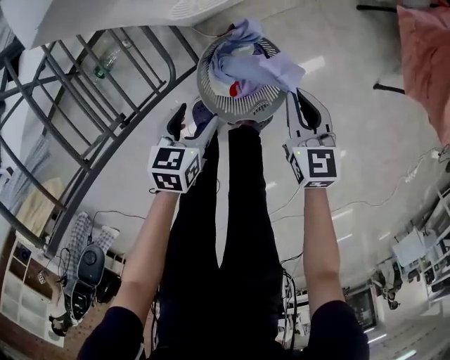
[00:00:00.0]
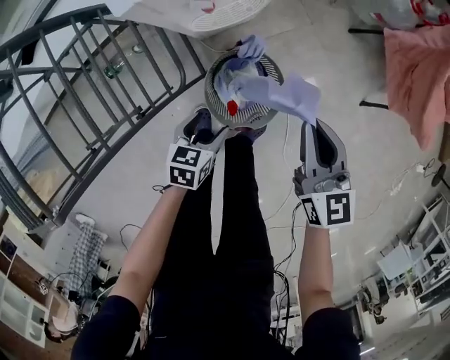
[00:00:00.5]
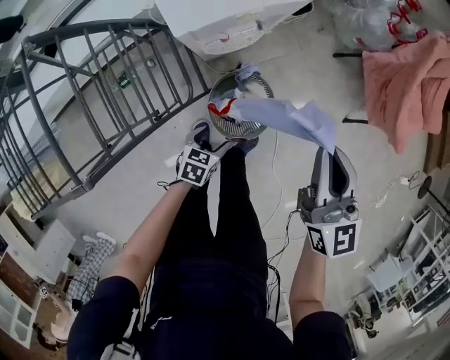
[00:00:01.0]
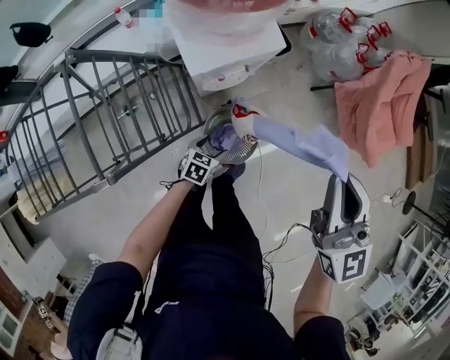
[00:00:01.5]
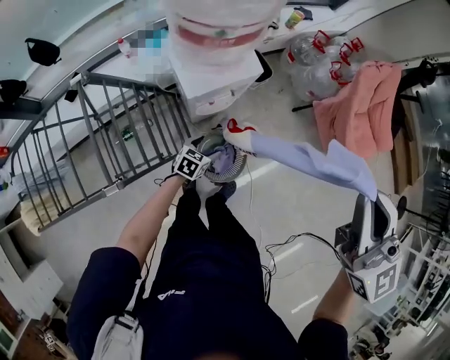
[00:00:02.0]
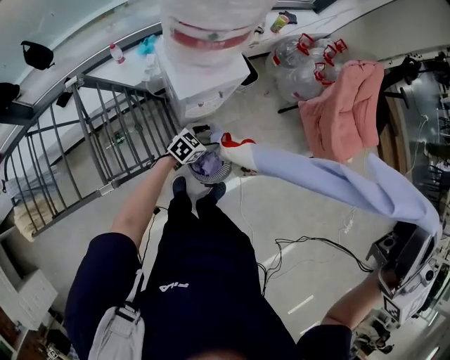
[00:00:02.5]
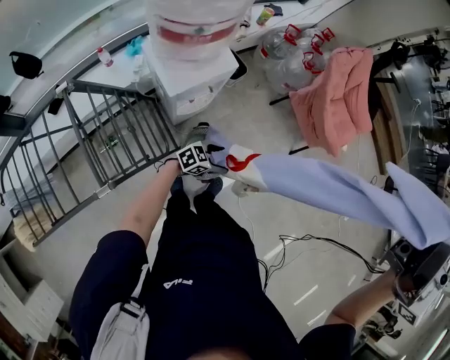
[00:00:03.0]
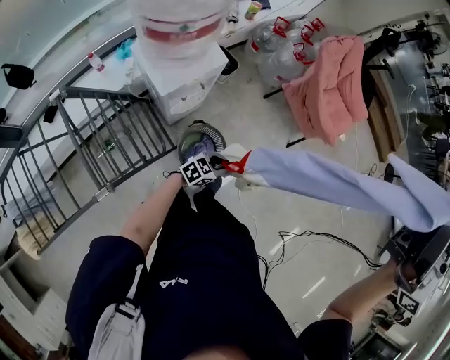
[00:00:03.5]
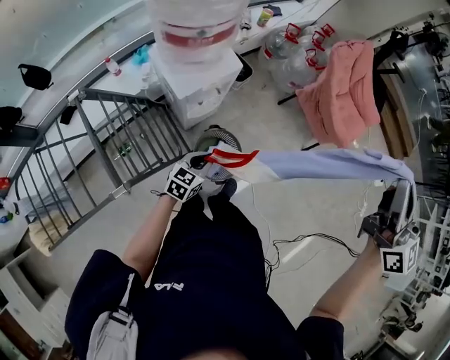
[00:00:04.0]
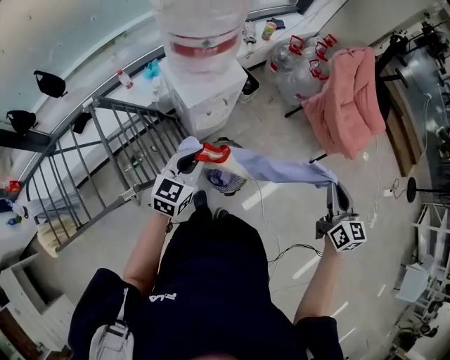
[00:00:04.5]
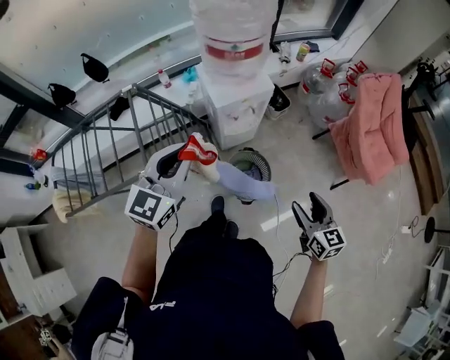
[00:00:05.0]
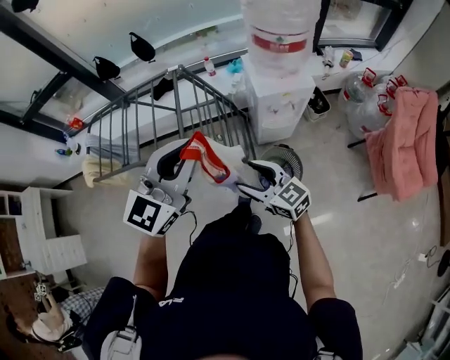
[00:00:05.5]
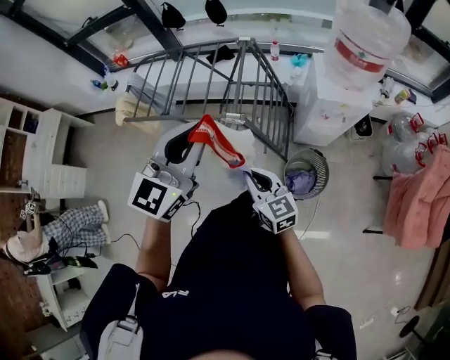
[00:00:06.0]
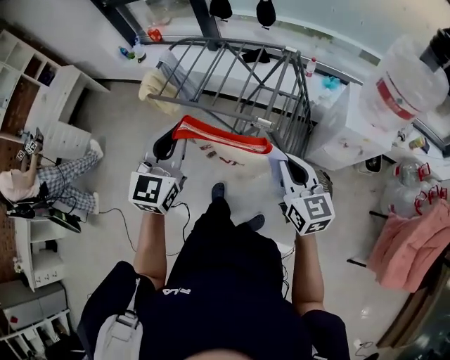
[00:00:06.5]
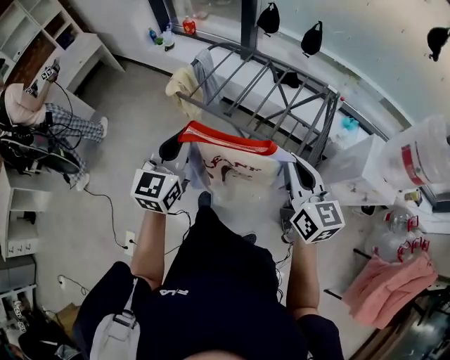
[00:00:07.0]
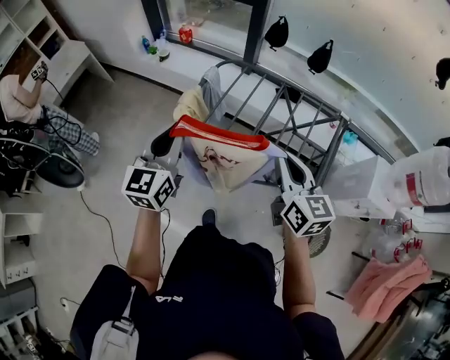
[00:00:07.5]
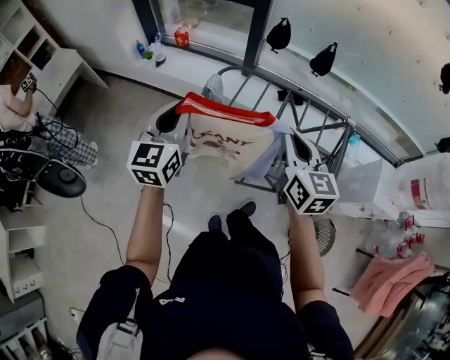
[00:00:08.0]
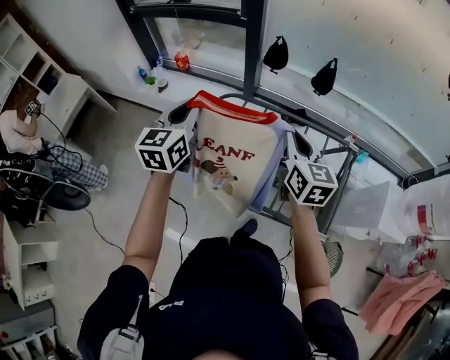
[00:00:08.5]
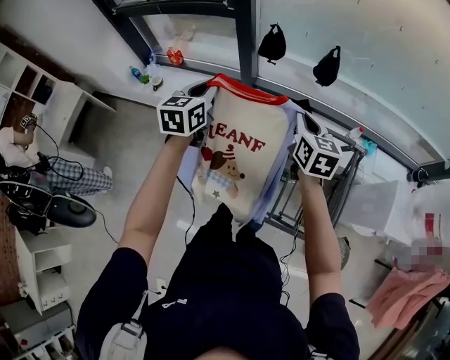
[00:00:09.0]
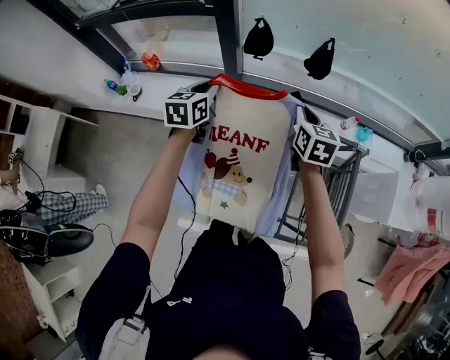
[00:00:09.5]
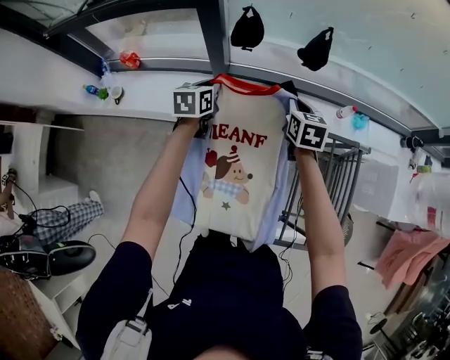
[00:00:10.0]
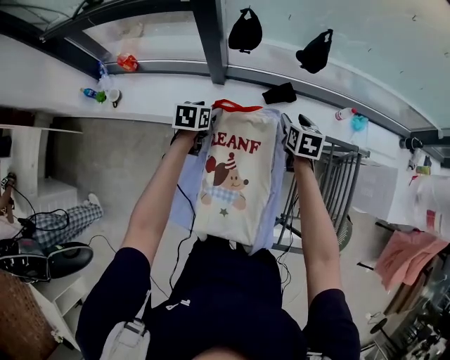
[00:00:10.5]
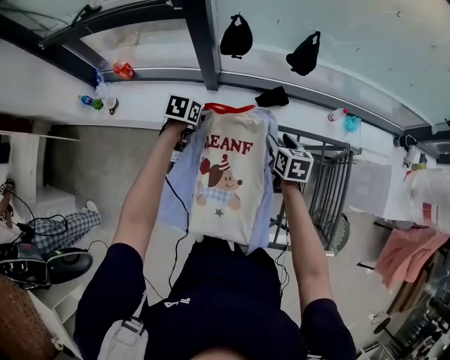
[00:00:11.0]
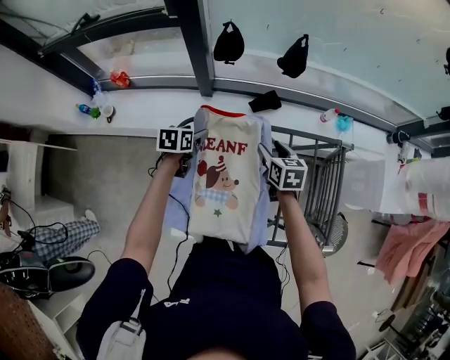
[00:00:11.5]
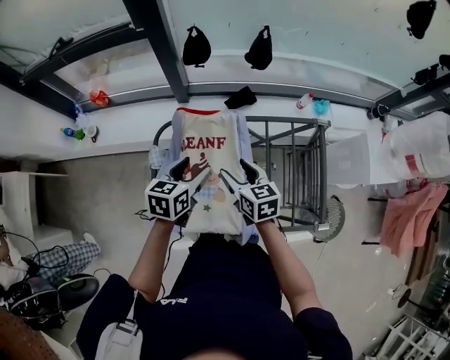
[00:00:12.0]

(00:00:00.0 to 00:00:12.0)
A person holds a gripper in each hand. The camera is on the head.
00:00:00.0 - 00:00:02.0: The right gripper goes roughly 70 cm upward, and points its fingers approximately 30 degrees further upward. Meanwhile the left gripper heads upward, covering some 25 cm, and changes its angle by roughly 20 degrees.
00:00:02.0 - 00:00:04.0: The left gripper goes some 15 cm upward, and closes its fingers. Meanwhile the right gripper goes upward and returns, roughly 20 cm each way, and swivels about 20 degrees.
00:00:04.0 - 00:00:06.0: The left gripper travels upward by approximately 35 cm, and changes its angle by approximately 60 degrees; the right gripper changes place by about 60 cm, rotates approximately 70 degrees, and opens and closes again.
00:00:06.0 - 00:00:08.0: Both grippers are carried to the left and forward, roughly 60 cm. The left gripper changes its angle by roughly 30 degrees. Meanwhile the right gripper moves upward, about 15 cm.
00:00:08.0 - 00:00:10.0: The two grippers travel together, forward, roughly 50 cm. The grippers both shift downward by some 25 cm. The right gripper rotates some 30 degrees. The left gripper swivels about 40 degrees.
00:00:10.0 - 00:00:12.0: The left gripper heads backward and to the right, covering approximately 25 cm, and opens up; the right gripper goes approximately 25 cm backward, and opens up.

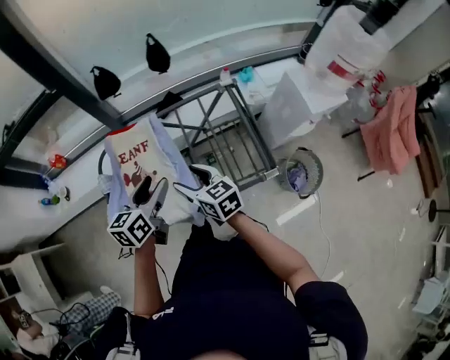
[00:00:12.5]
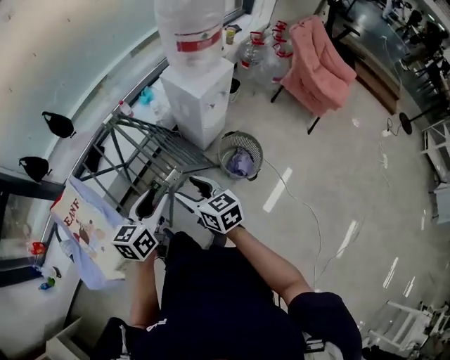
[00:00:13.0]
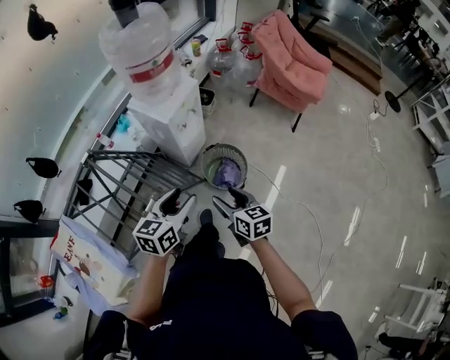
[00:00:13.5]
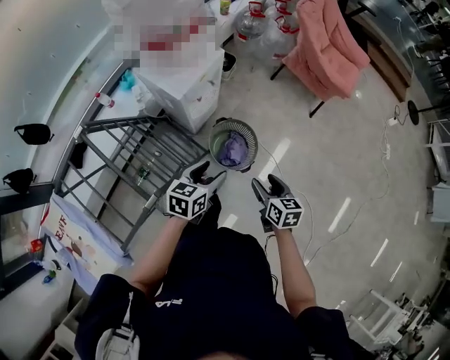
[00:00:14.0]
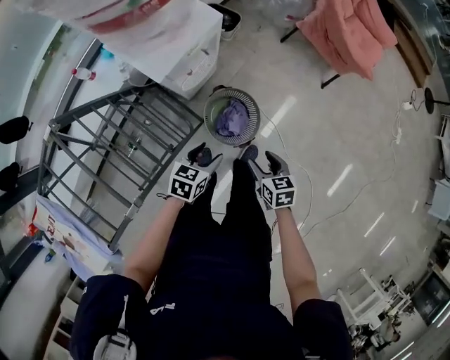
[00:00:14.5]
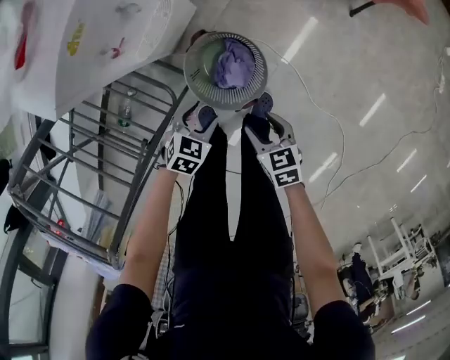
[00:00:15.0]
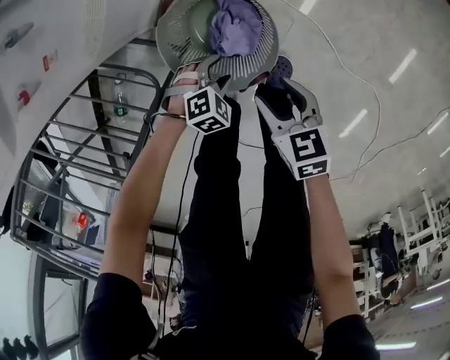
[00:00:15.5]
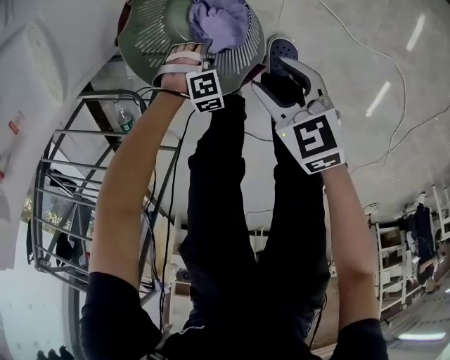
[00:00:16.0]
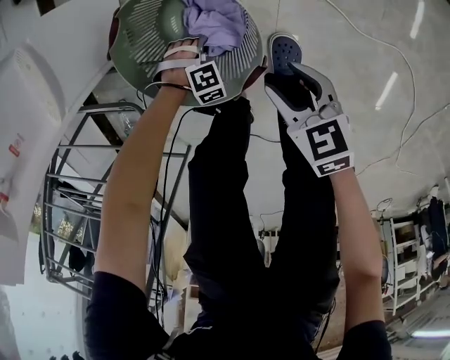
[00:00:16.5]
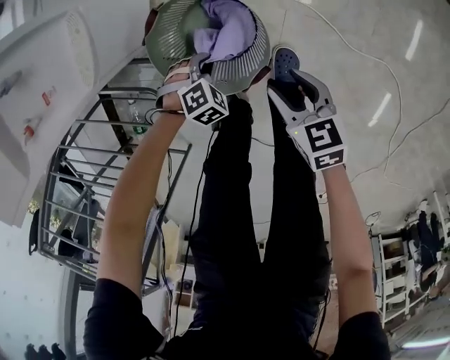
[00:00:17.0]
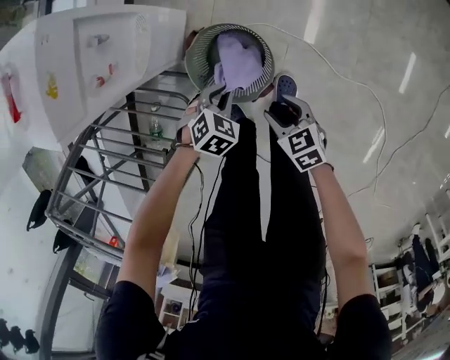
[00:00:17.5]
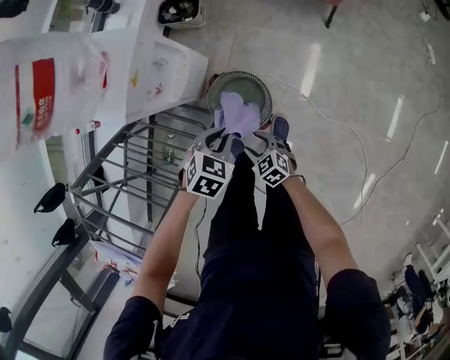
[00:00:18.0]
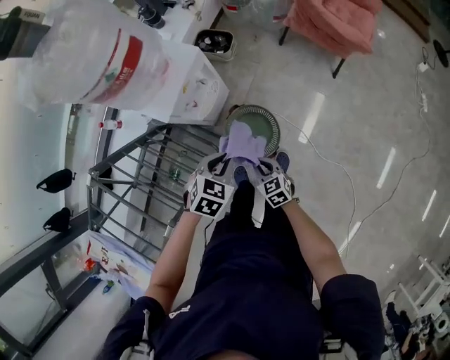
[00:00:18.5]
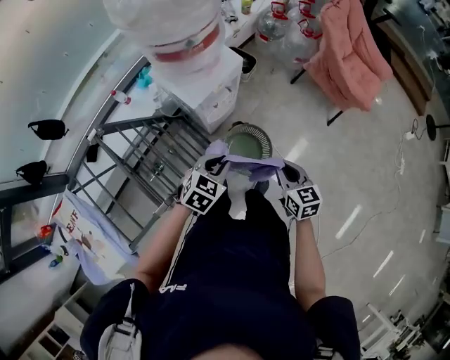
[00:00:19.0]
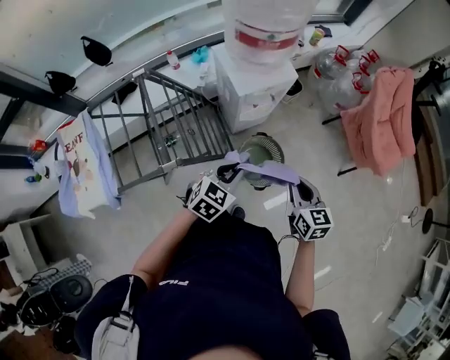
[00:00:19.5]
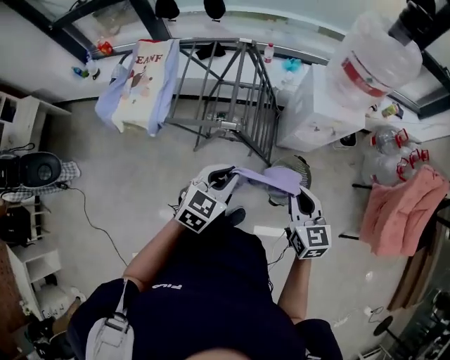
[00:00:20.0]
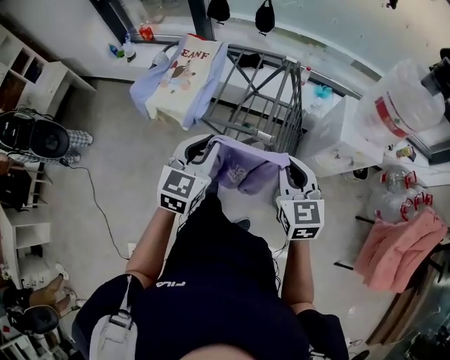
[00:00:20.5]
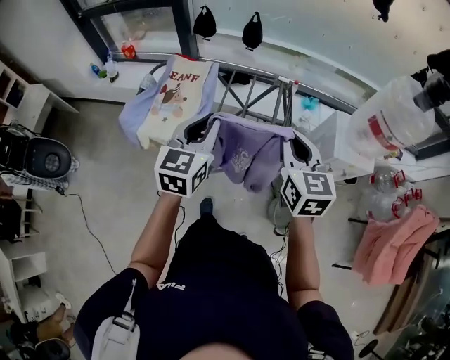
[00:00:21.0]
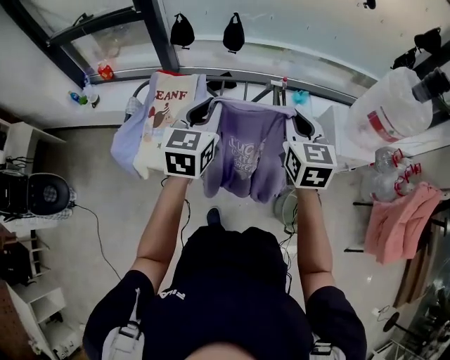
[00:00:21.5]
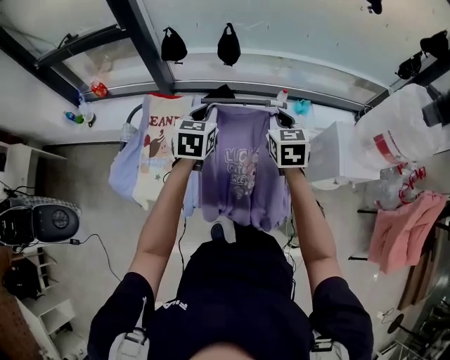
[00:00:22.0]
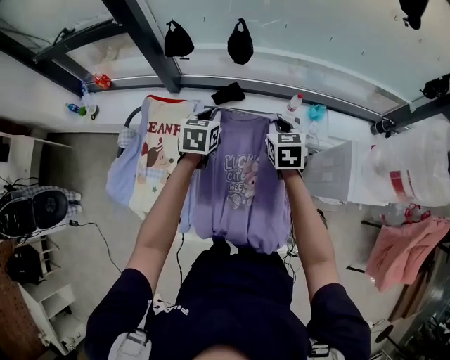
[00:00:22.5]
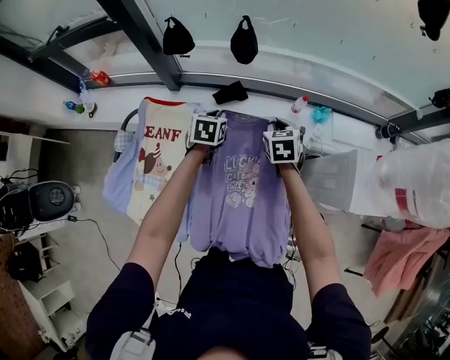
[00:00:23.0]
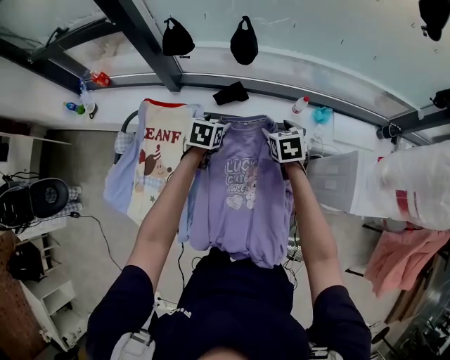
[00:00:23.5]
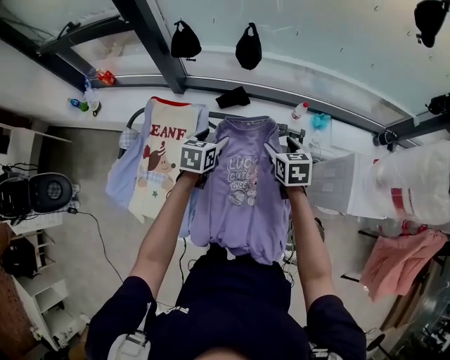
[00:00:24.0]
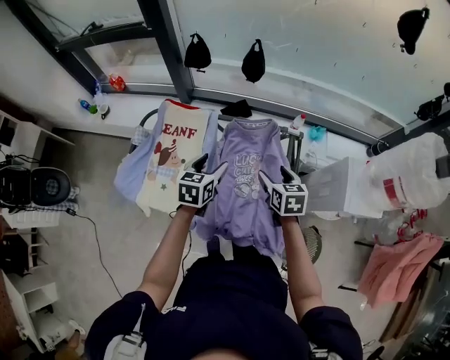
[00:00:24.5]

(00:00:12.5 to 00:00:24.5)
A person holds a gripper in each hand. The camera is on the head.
00:00:12.5 - 00:00:14.5: The two grippers travel together, roughly 70 cm. The right gripper changes its angle by some 60 degrees. The left gripper changes its angle by about 60 degrees.
00:00:14.5 - 00:00:16.5: The left gripper goes some 60 cm downward, rolls clockwise, seen from behind, by approximately 90 degrees, and closes. The right gripper is displaced downward by some 40 cm.
00:00:16.5 - 00:00:18.5: The right gripper moves upward, some 40 cm, changes its angle by some 30 degrees, and closes, while the left gripper heads upward, covering about 70 cm, and twists about 70 degrees counterclockwise, seen from behind.
00:00:18.5 - 00:00:20.5: The right gripper travels upward by some 40 cm, and rotates some 60 degrees. Meanwhile the left gripper changes place by roughly 50 cm, and angles its fingers upward, by approximately 40 degrees.
00:00:20.5 - 00:00:22.5: The two grippers travel together, forward, approximately 50 cm. The right gripper rotates approximately 20 degrees. The left gripper rotates about 20 degrees.
00:00:22.5 - 00:00:24.5: The two grippers go some 15 cm backward. The left gripper opens its fingers. The right gripper opens.

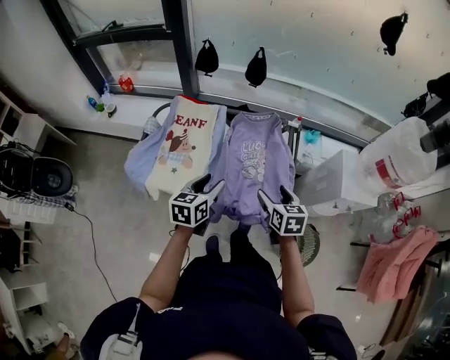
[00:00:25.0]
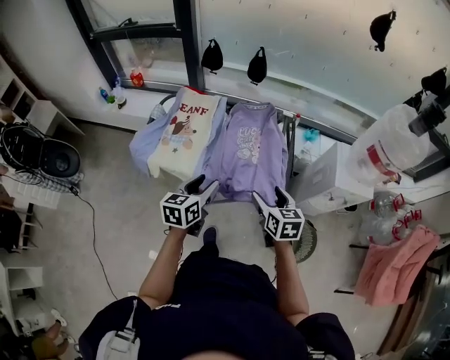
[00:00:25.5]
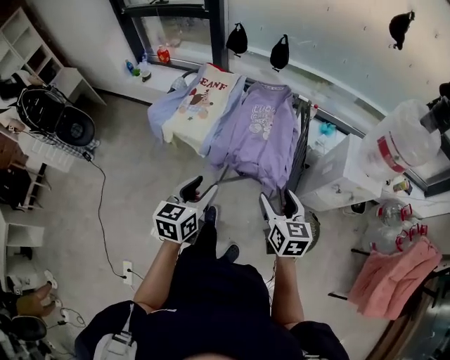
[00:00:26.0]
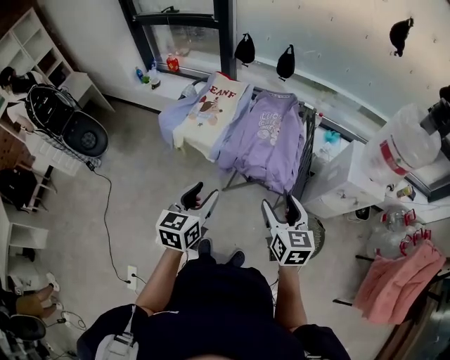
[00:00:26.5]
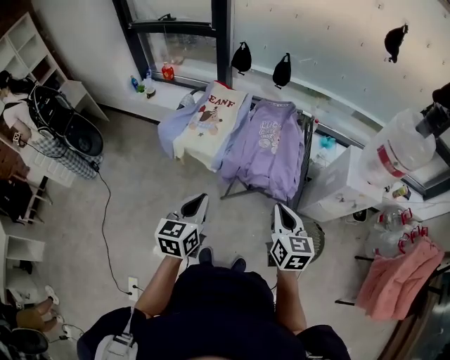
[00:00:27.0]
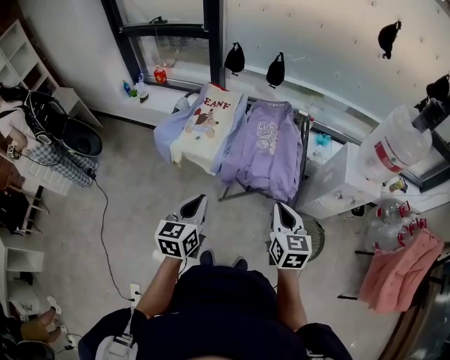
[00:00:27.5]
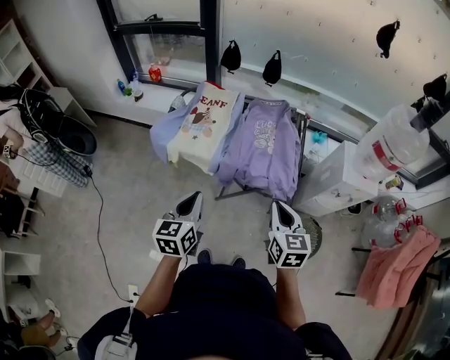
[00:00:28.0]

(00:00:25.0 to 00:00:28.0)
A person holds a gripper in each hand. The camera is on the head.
00:00:25.0 - 00:00:26.5: The left gripper heads backward, covering about 30 cm. Meanwhile the right gripper is displaced backward and upward by approximately 25 cm.
00:00:26.5 - 00:00:28.0: The left gripper is displaced to the left by roughly 5 cm, and closes. The right gripper closes its fingers.
